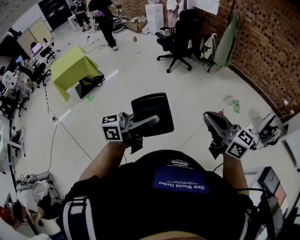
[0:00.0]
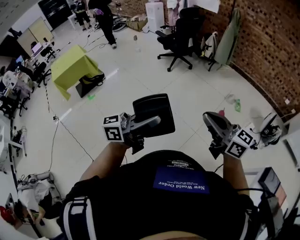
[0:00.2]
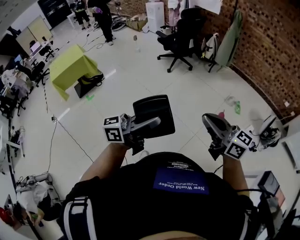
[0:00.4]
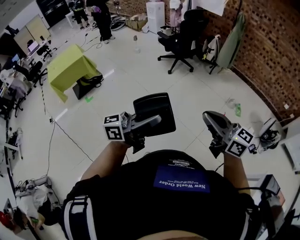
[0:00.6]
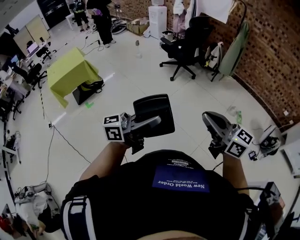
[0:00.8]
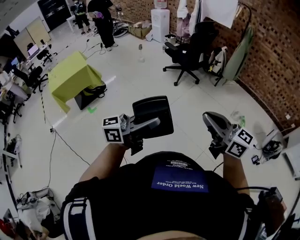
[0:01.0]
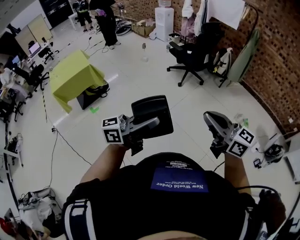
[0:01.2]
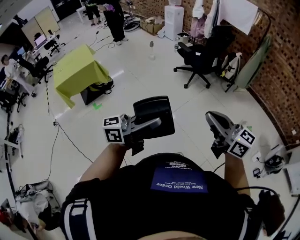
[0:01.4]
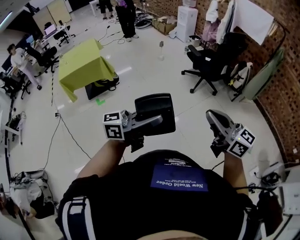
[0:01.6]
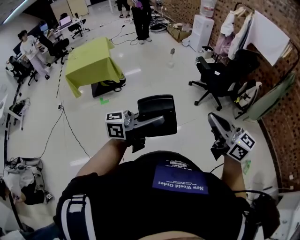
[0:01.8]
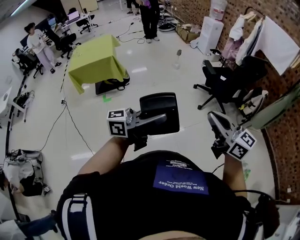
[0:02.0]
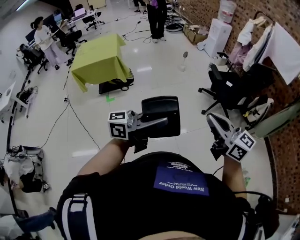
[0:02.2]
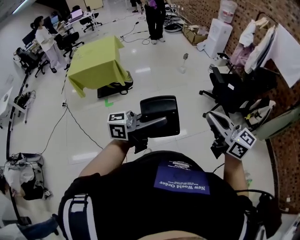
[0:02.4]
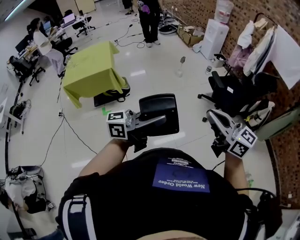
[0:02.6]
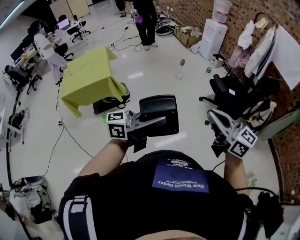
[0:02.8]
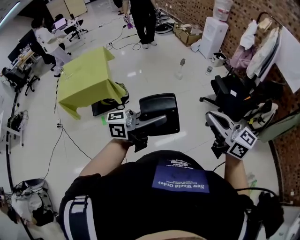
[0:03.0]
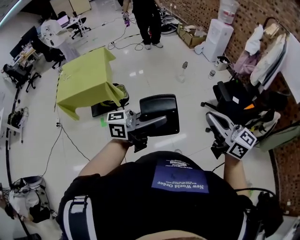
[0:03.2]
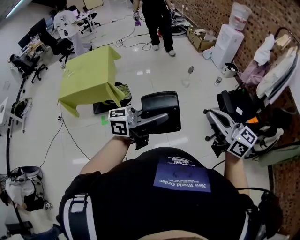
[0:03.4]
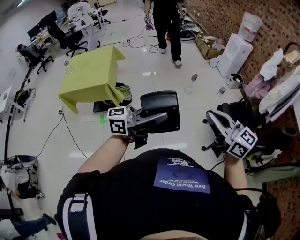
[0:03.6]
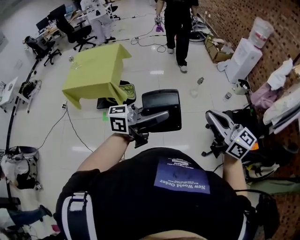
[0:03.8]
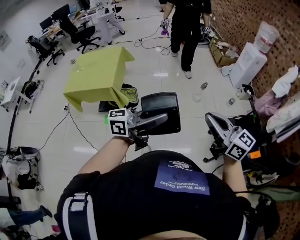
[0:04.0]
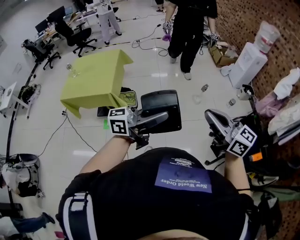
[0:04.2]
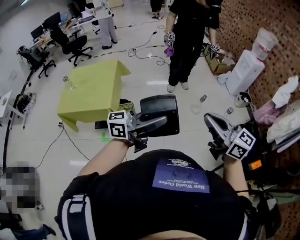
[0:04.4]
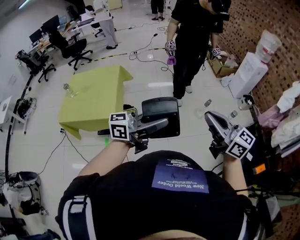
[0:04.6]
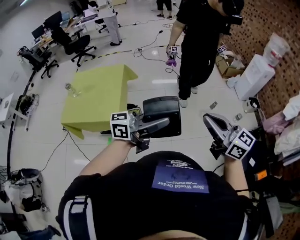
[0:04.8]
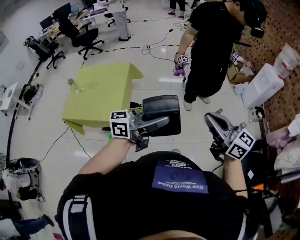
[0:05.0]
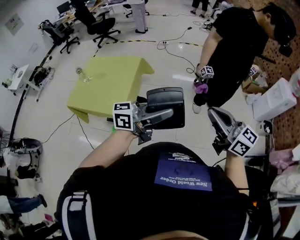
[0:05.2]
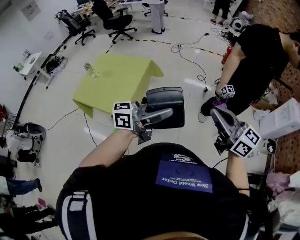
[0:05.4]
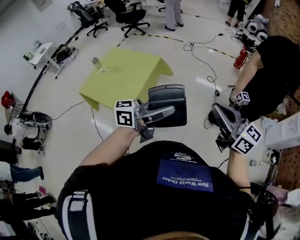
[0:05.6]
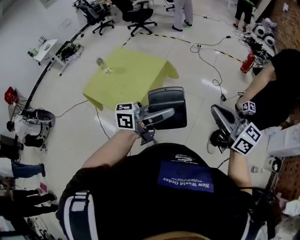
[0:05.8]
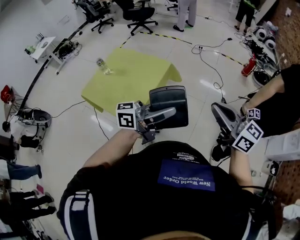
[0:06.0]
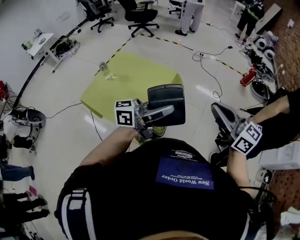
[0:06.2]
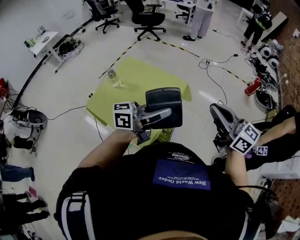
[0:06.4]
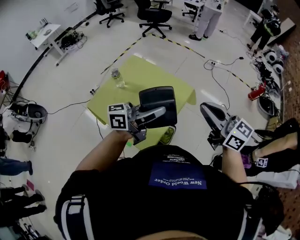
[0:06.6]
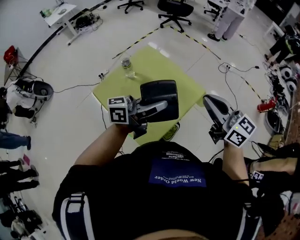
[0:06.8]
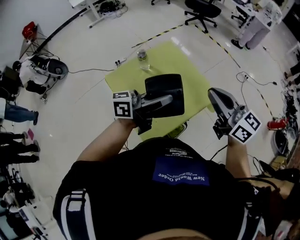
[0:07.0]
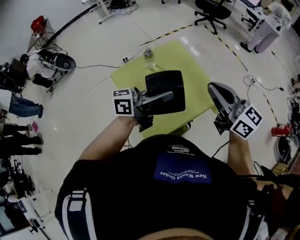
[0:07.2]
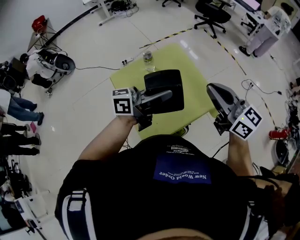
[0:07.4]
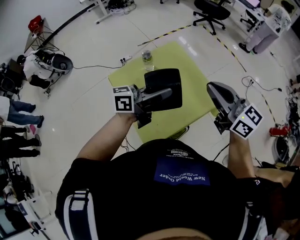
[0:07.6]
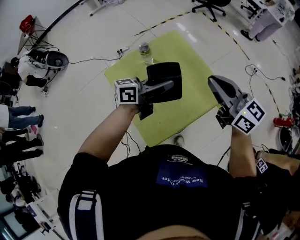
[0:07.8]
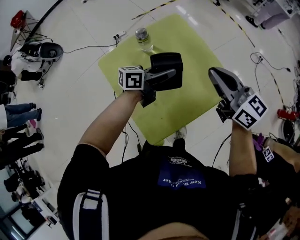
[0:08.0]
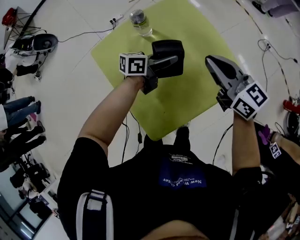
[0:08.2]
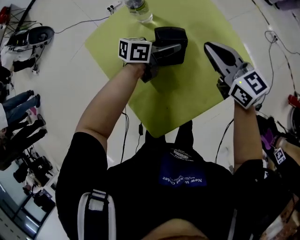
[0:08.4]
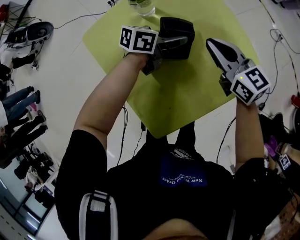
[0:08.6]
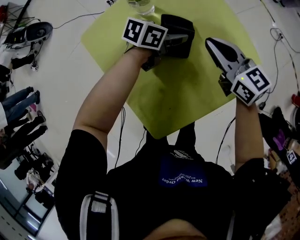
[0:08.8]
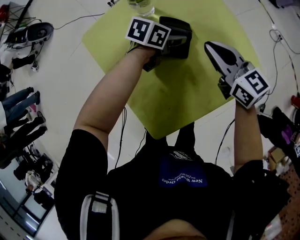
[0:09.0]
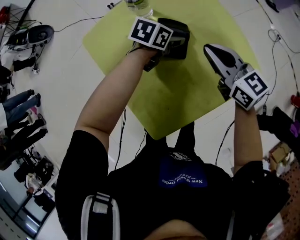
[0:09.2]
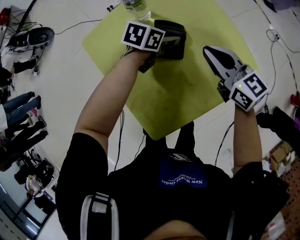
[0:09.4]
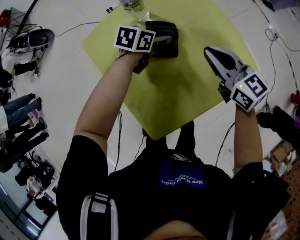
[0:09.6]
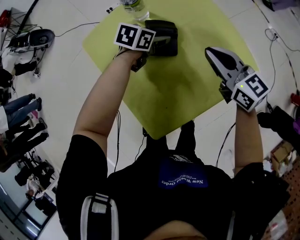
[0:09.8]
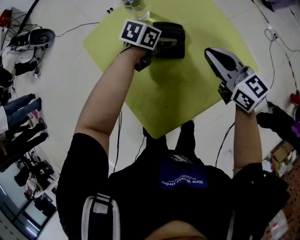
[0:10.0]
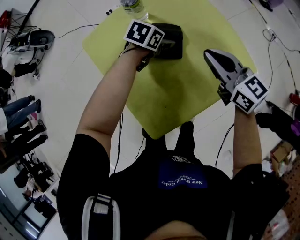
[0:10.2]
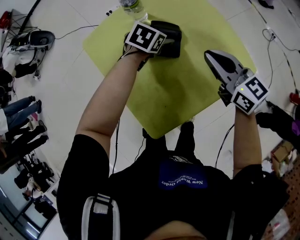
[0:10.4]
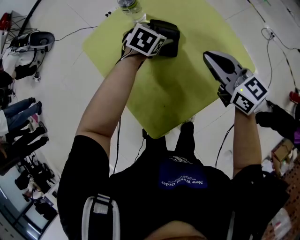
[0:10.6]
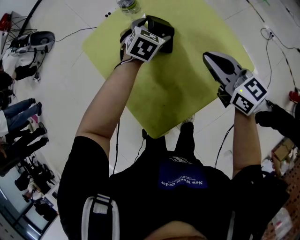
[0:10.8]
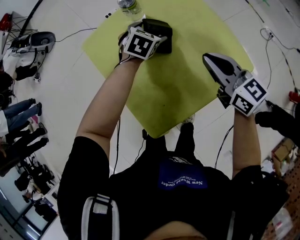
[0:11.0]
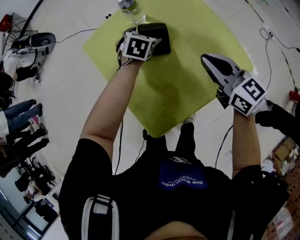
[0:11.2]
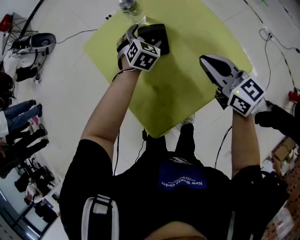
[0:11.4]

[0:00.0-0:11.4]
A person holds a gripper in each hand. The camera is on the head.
0.0 to 1.4 s: Both grippers move to the left and forward, roughly 40 cm.
1.4 to 2.8 s: The pair of grippers is taken forward, about 50 cm.
2.8 to 4.2 s: The two grippers travel together, forward, approximately 40 cm. The right gripper changes its angle by some 20 degrees.
4.2 to 5.6 s: Both grippers are carried roughly 50 cm. The left gripper rotates some 30 degrees. Meanwhile the right gripper changes its angle by some 20 degrees.
5.6 to 7.2 s: Both grippers are carried some 60 cm. The right gripper turns by some 40 degrees. Meanwhile the left gripper swivels about 40 degrees.
7.2 to 8.6 s: Both grippers travel together downward and forward, some 40 cm. The left gripper angles its fingers downward, by some 30 degrees.
8.6 to 10.0 s: The left gripper changes place by roughly 5 cm, turns by about 30 degrees, and opens its fingers.
10.0 to 11.4 s: The left gripper ends up some 5 cm from where it was, changes its angle by about 50 degrees, and opens its fingers.

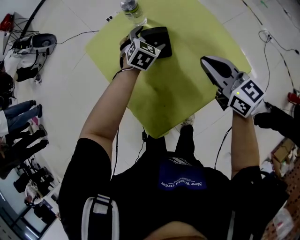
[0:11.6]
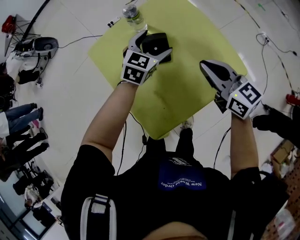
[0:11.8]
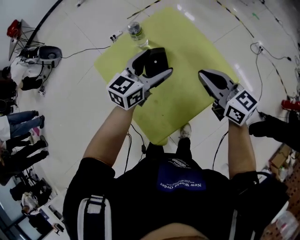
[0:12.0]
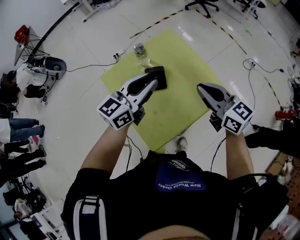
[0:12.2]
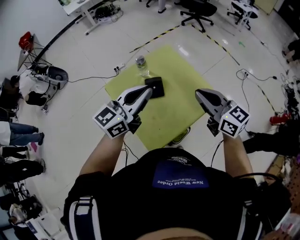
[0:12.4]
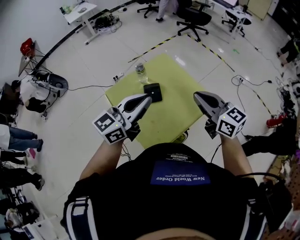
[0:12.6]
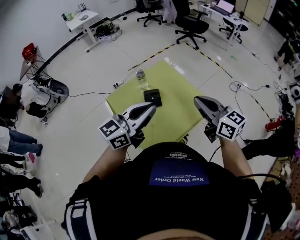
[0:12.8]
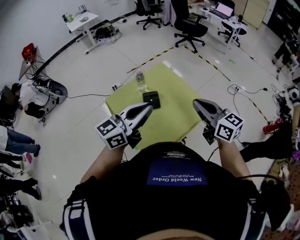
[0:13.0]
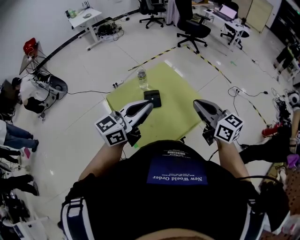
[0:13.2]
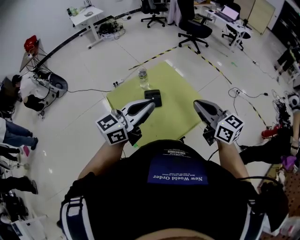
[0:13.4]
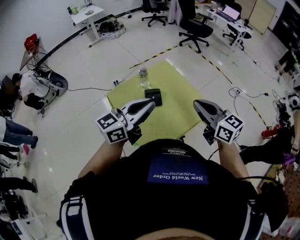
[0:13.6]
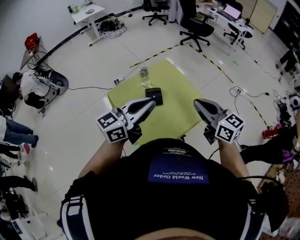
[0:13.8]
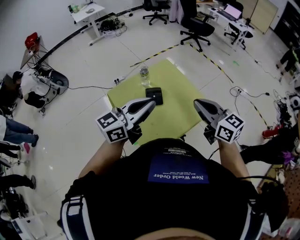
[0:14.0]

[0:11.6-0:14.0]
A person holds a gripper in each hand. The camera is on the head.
11.6 to 12.8 s: The right gripper travels upward and backward by some 30 cm; the left gripper goes roughly 50 cm upward and backward, tips its fingers upward by about 50 degrees, and closes.
12.8 to 14.0 s: The grippers move only a little.

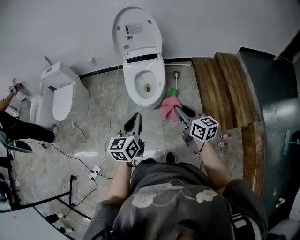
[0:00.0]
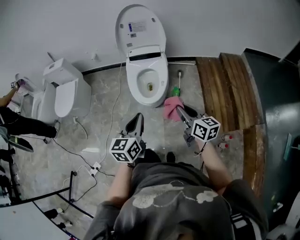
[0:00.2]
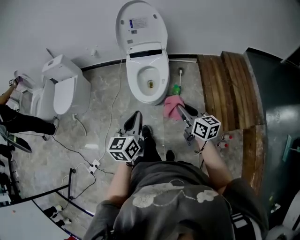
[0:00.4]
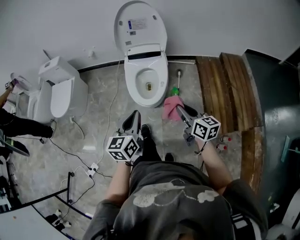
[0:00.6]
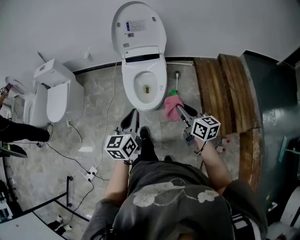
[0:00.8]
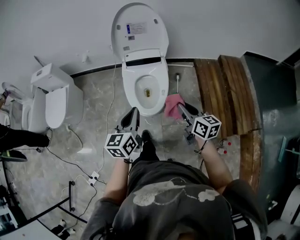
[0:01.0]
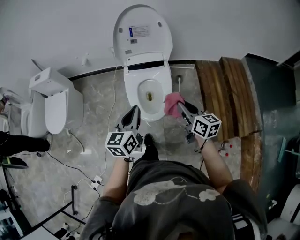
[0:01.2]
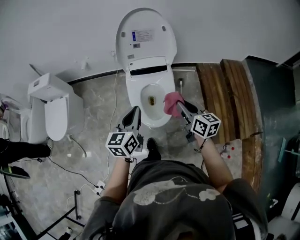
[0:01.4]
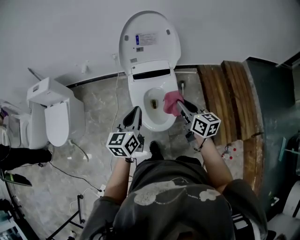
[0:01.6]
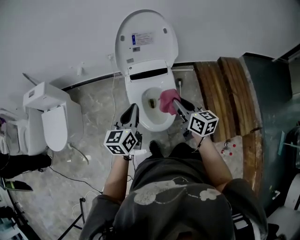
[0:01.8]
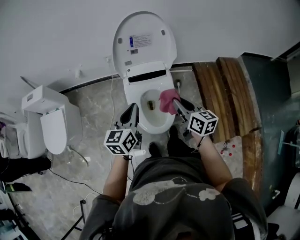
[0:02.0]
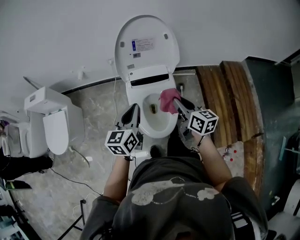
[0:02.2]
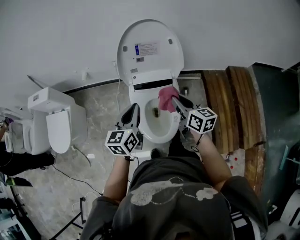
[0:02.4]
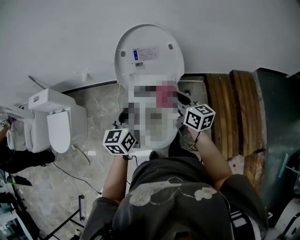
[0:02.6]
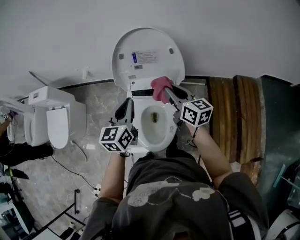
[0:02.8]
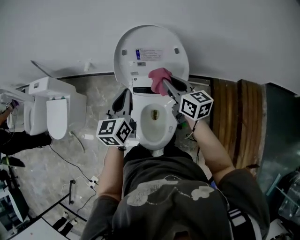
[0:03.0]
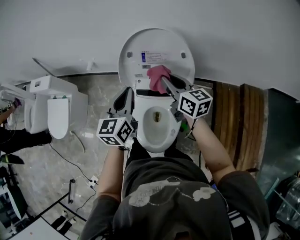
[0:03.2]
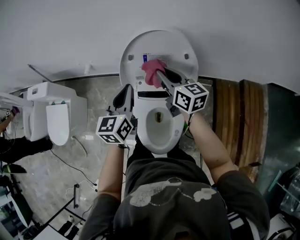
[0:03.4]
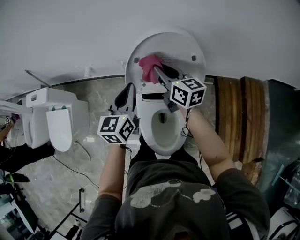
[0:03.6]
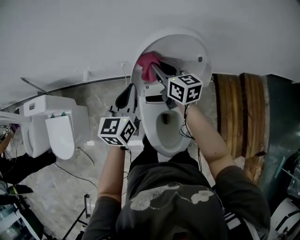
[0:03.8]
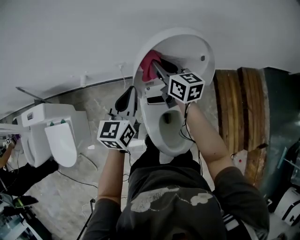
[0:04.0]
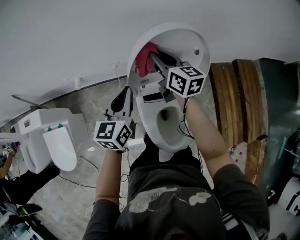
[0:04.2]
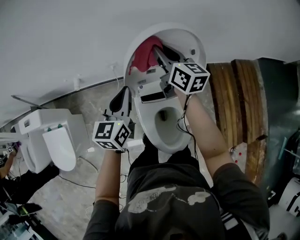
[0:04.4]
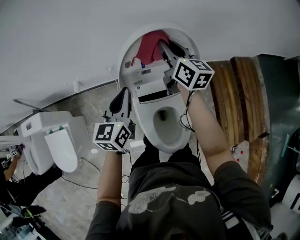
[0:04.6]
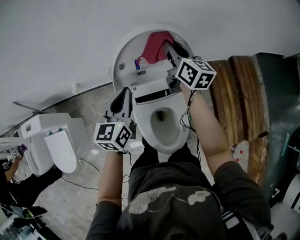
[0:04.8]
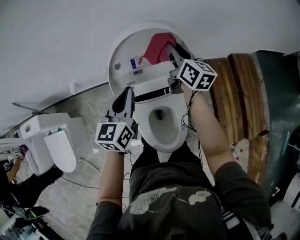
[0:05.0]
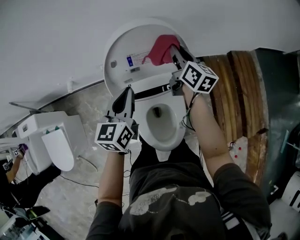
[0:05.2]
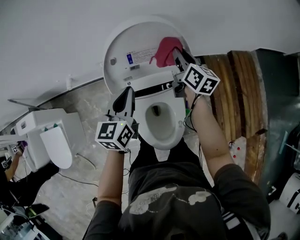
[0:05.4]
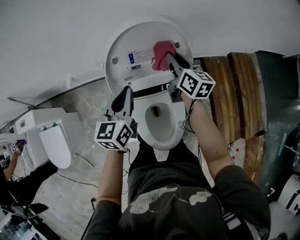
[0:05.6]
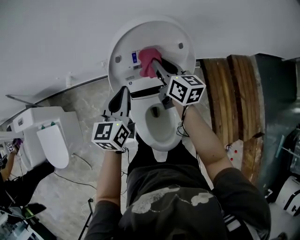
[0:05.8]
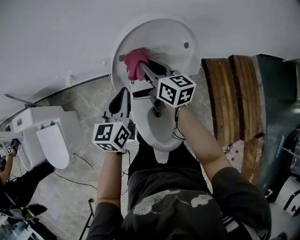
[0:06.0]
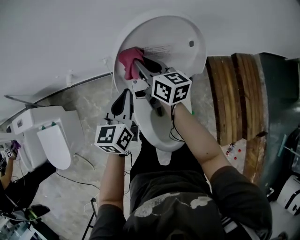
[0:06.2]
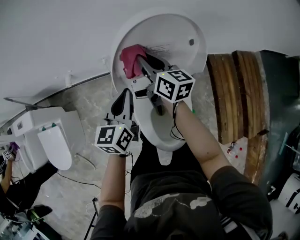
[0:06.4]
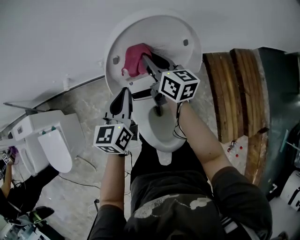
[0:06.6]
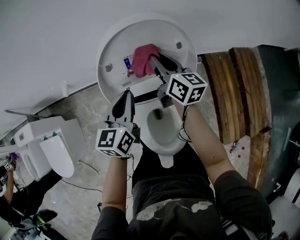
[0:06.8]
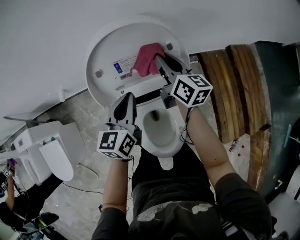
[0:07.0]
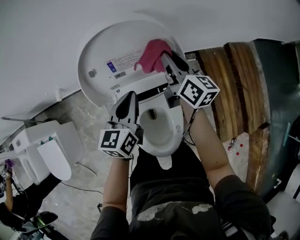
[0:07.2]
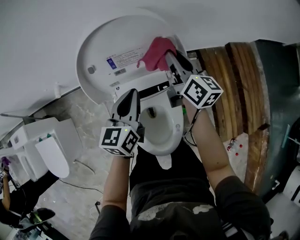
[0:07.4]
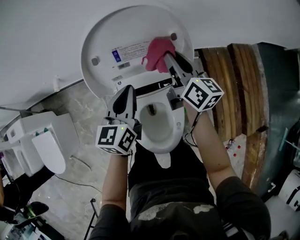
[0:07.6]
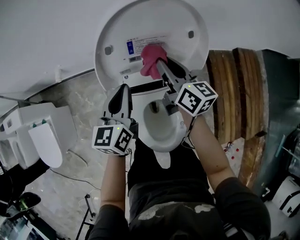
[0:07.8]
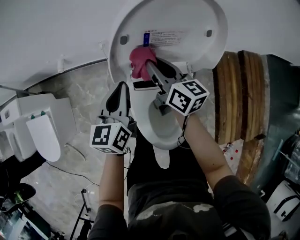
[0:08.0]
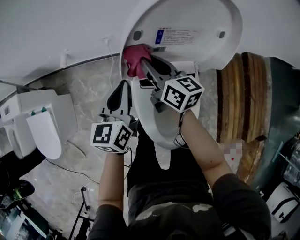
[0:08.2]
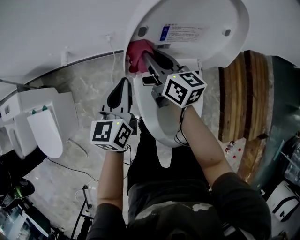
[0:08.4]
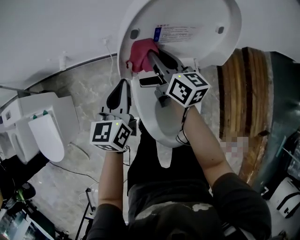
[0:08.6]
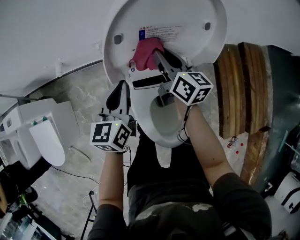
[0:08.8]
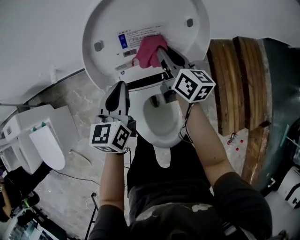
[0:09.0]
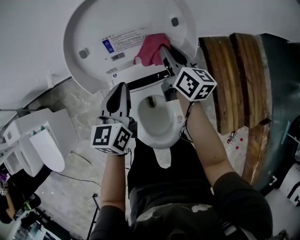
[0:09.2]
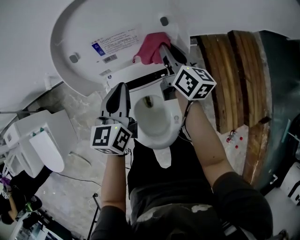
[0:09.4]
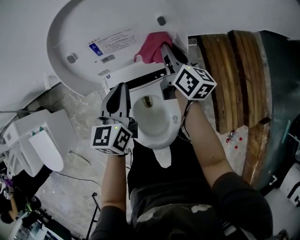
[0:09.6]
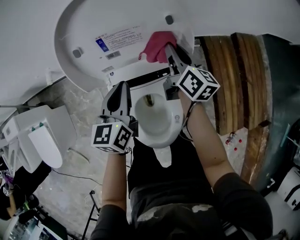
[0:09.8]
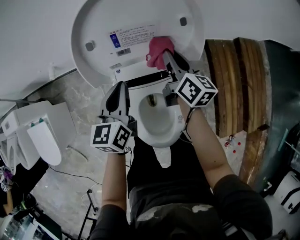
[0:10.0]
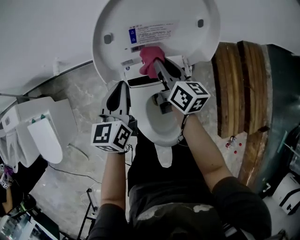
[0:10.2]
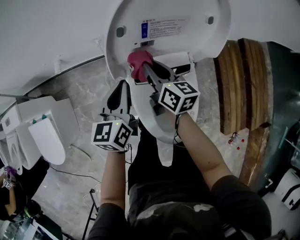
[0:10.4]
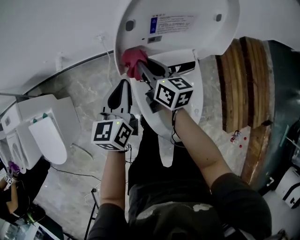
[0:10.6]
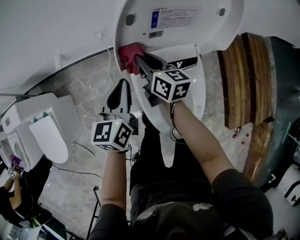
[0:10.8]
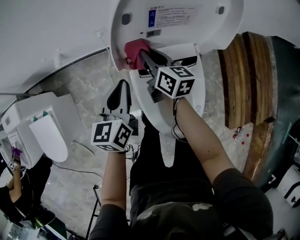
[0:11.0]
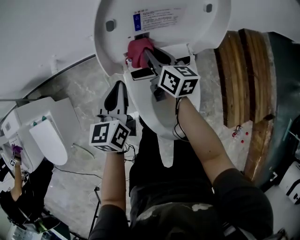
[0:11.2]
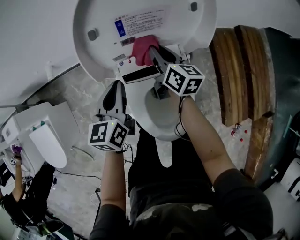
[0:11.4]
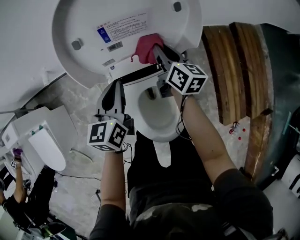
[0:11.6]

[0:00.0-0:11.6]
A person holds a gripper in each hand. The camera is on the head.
0.0 to 1.4 s: The two grippers go approximately 25 cm forward.
1.4 to 2.8 s: The two grippers go approximately 25 cm forward.
2.8 to 4.4 s: The right gripper heads forward, covering roughly 25 cm. The left gripper shifts roughly 20 cm forward and to the left.
4.4 to 5.8 s: The right gripper goes about 10 cm downward and backward, and travels to the right and back again, some 15 cm each way. Meanwhile the left gripper travels to the right by about 5 cm.
5.8 to 7.2 s: The left gripper shifts some 10 cm to the right and downward. The right gripper shifts approximately 10 cm to the right.
7.2 to 8.8 s: The left gripper heads to the left, covering some 15 cm; the right gripper travels to the left and downward by roughly 15 cm.
8.8 to 10.2 s: The right gripper reaches about 15 cm to the right, then returns, while the left gripper travels to the right and back again, roughly 10 cm each way.
10.2 to 11.6 s: The left gripper shifts by approximately 5 cm. The right gripper heads to the right and downward, covering approximately 10 cm.
